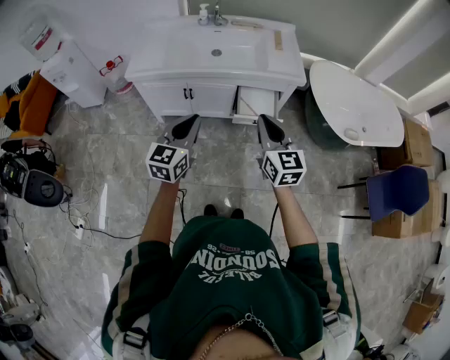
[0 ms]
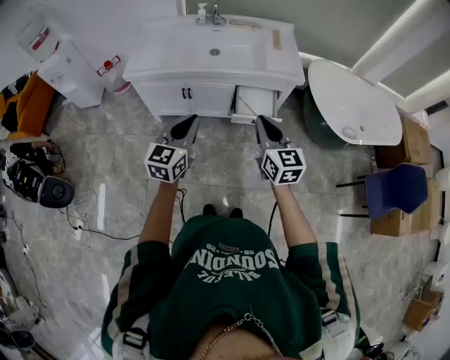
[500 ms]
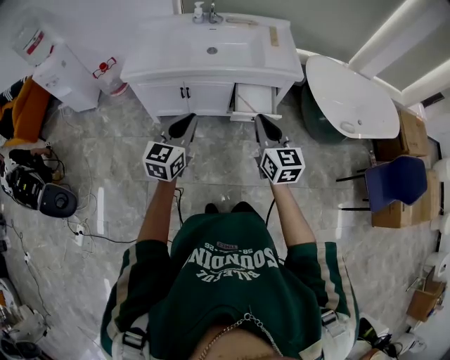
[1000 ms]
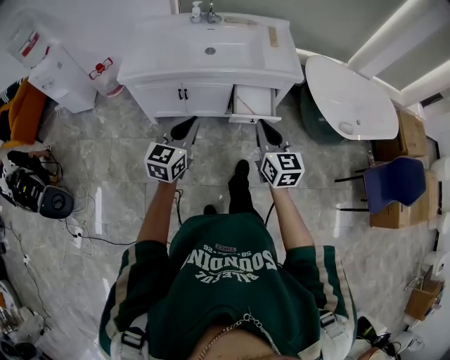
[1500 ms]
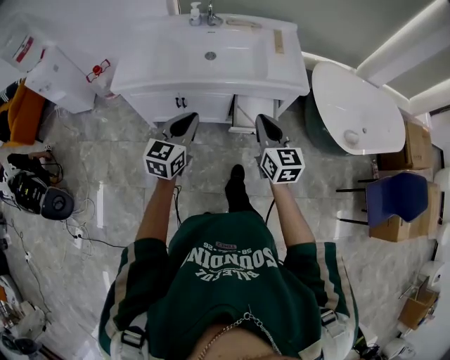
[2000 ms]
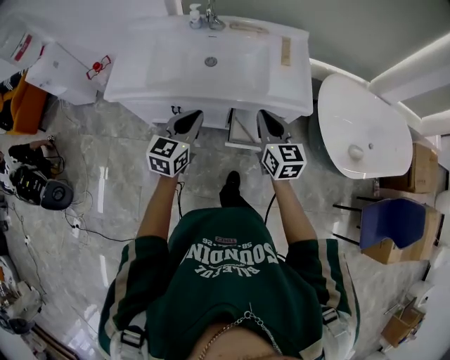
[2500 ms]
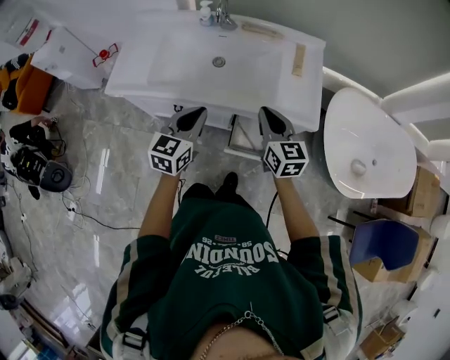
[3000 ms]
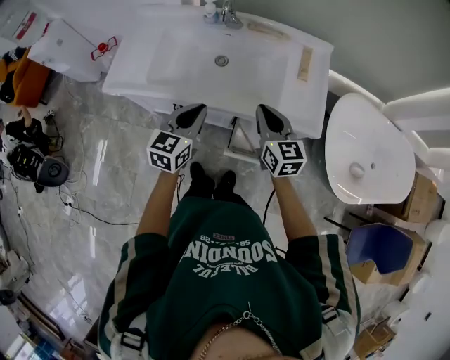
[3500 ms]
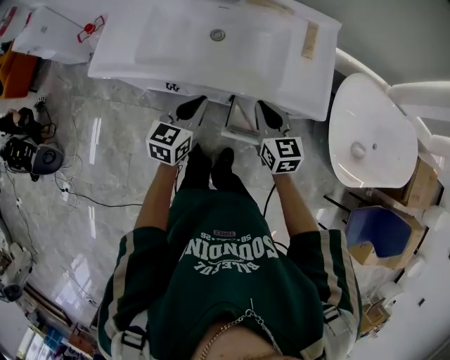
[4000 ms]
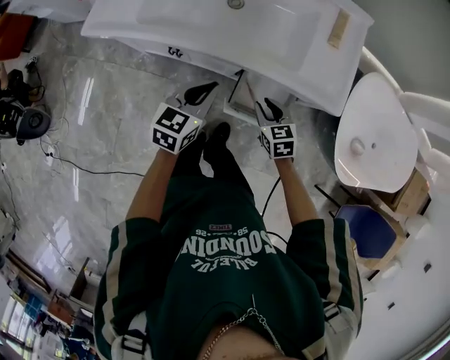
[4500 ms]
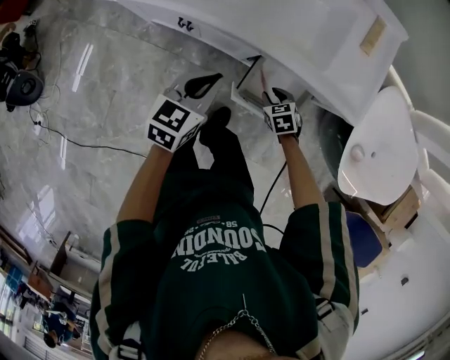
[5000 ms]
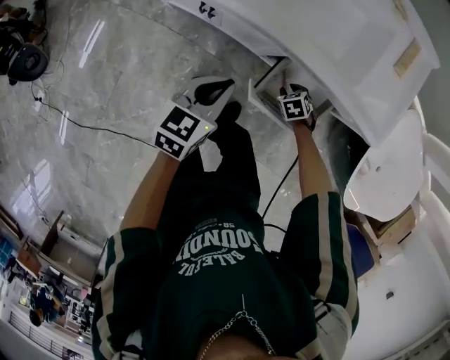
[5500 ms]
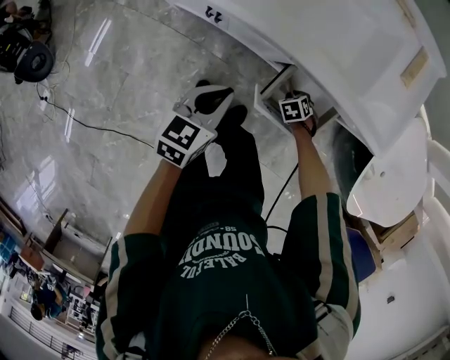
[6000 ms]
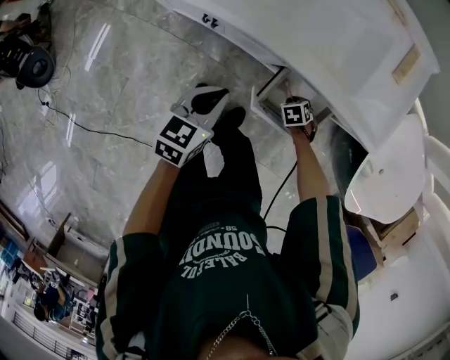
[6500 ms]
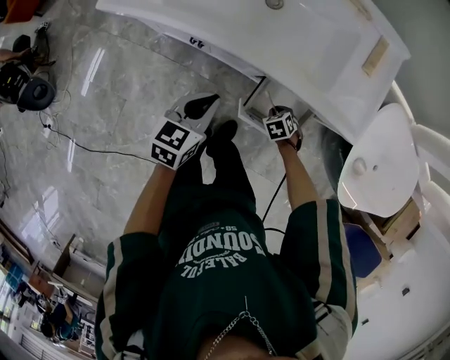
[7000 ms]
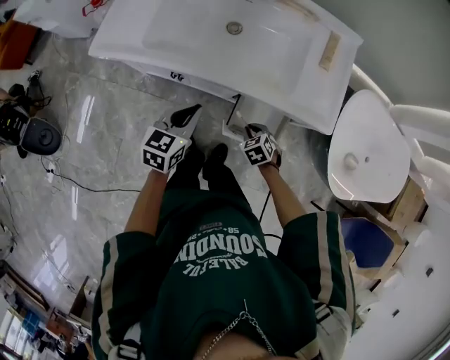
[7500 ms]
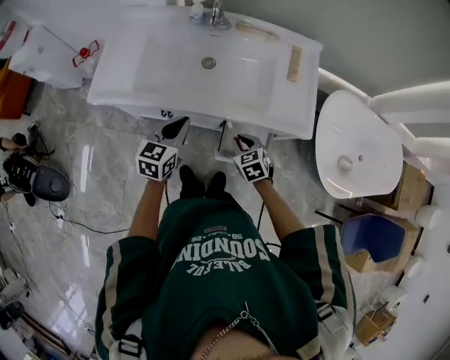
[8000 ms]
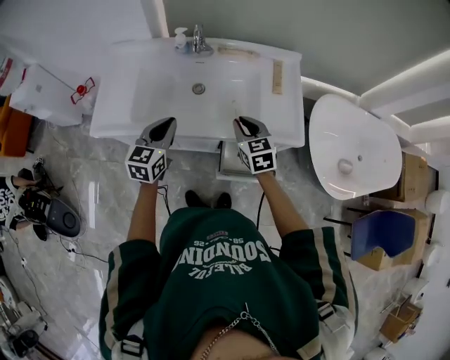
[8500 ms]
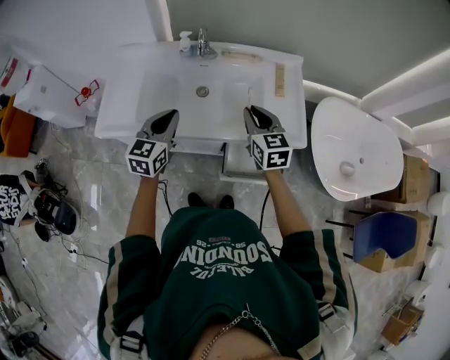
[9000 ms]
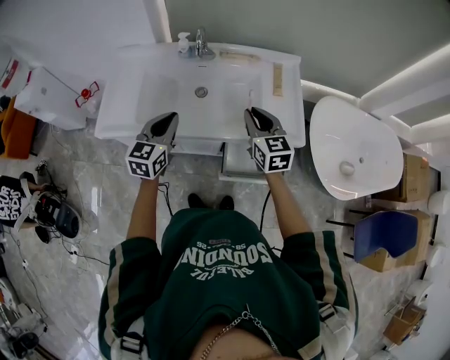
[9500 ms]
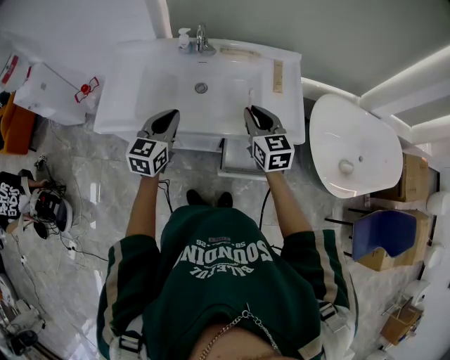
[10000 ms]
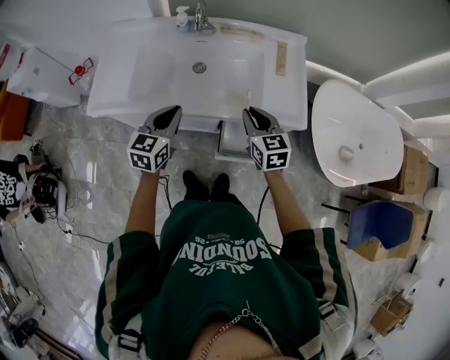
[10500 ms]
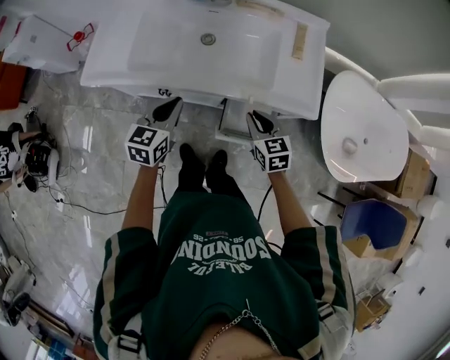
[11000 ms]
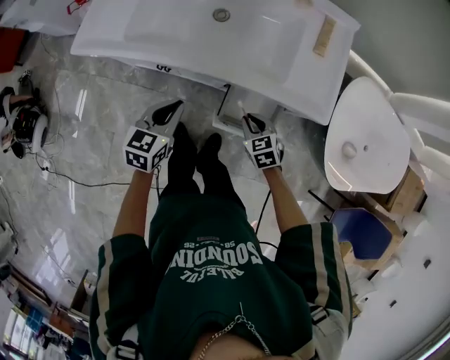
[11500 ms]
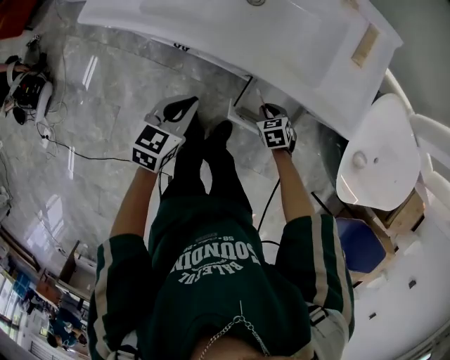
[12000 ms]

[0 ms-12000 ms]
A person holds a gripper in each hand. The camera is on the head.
0 ms to 2000 ms: The left gripper moves forward, roughly 15 cm. Meanwhile the right gripper is displaced forward and downward by roughly 15 cm.
2000 ms to 4000 ms: Both grippers travel together forward and downward, some 25 cm.
4000 ms to 6000 ms: The left gripper is displaced downward by about 20 cm. The right gripper heads downward, covering about 50 cm, and points its fingers some 60 degrees further downward.
6000 ms to 8000 ms: The right gripper shifts some 35 cm upward, and tilts its fingers some 30 degrees upward. The left gripper is displaced upward by about 20 cm.
8000 ms to 10000 ms: The left gripper moves upward, roughly 10 cm. Meanwhile the right gripper shifts approximately 25 cm upward, and points its fingers some 30 degrees further upward.
10000 ms to 12000 ms: The right gripper shifts approximately 40 cm downward, and tips its fingers downward by approximately 50 degrees. Meanwhile the left gripper shifts about 25 cm downward and backward, and swivels about 20 degrees.

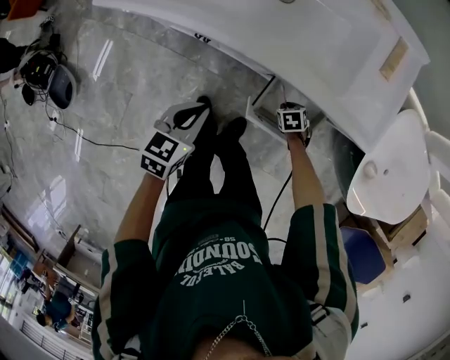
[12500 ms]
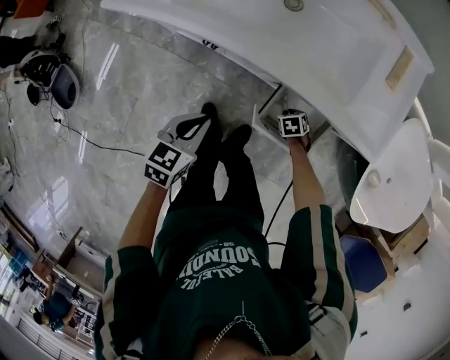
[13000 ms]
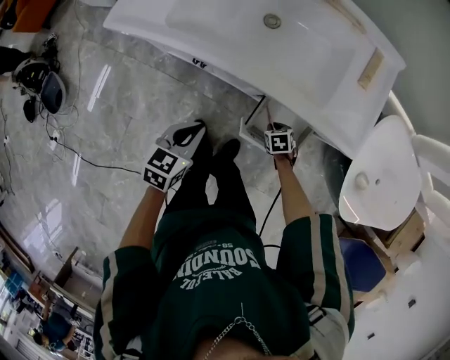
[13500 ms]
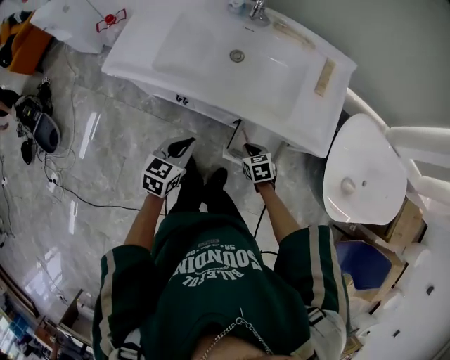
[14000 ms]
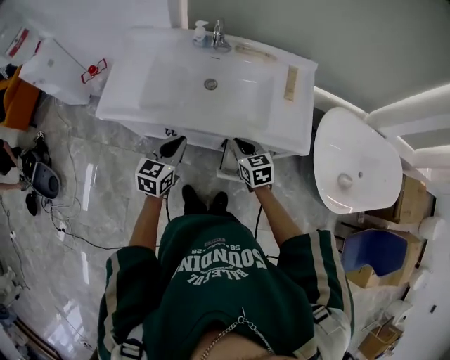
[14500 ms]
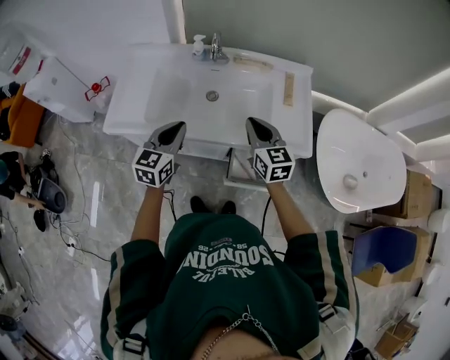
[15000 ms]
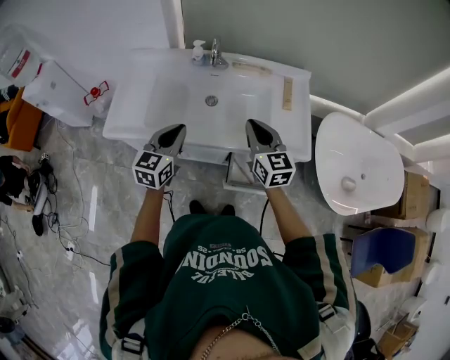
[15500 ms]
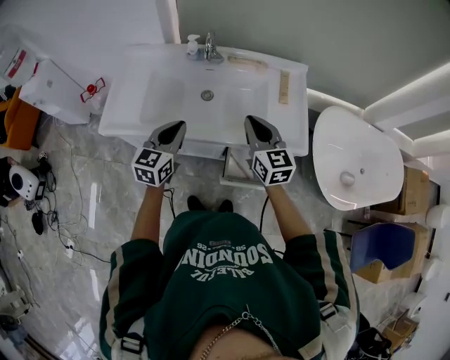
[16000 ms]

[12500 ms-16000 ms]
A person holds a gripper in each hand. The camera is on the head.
12500 ms to 14500 ms: The left gripper is displaced upward by about 15 cm, while the right gripper goes roughly 35 cm upward, and points its fingers some 40 degrees further upward.
14500 ms to 16000 ms: The right gripper shifts roughly 15 cm upward, and rotates roughly 30 degrees. The left gripper travels upward and forward by roughly 10 cm.

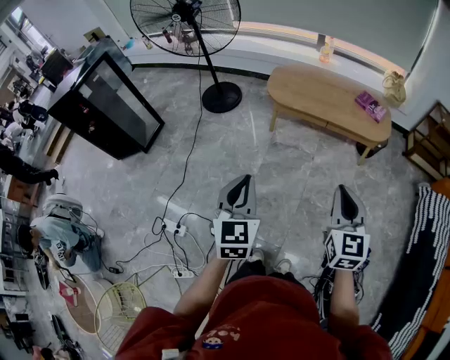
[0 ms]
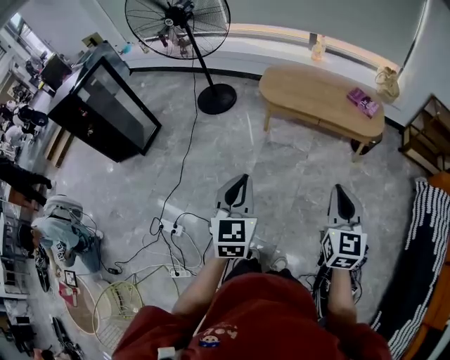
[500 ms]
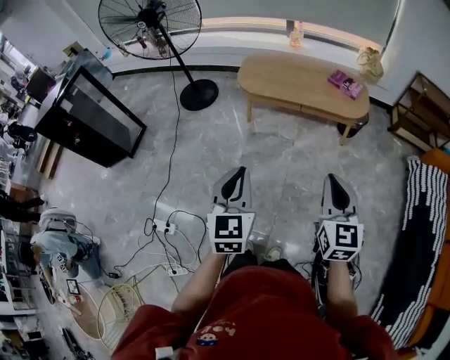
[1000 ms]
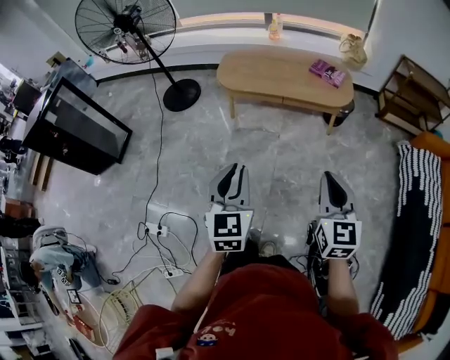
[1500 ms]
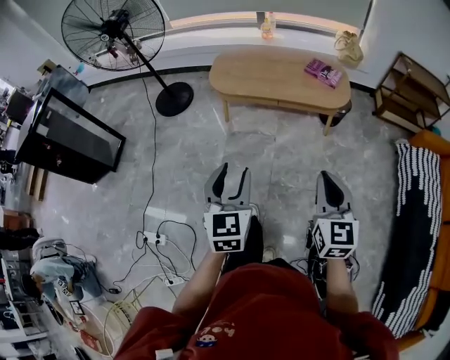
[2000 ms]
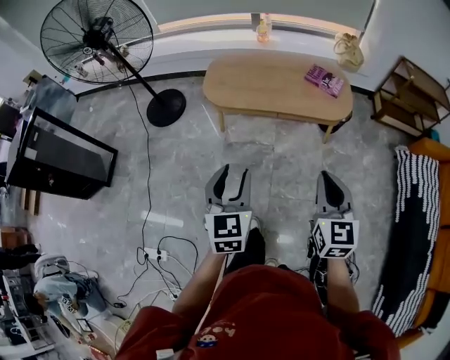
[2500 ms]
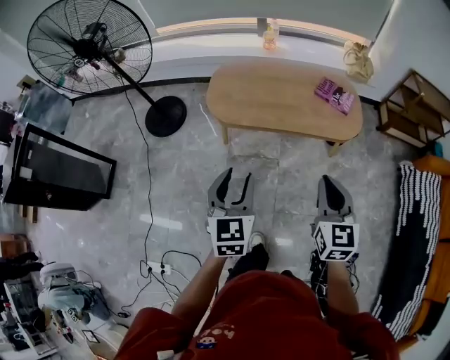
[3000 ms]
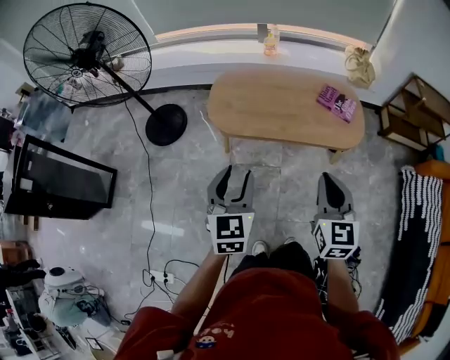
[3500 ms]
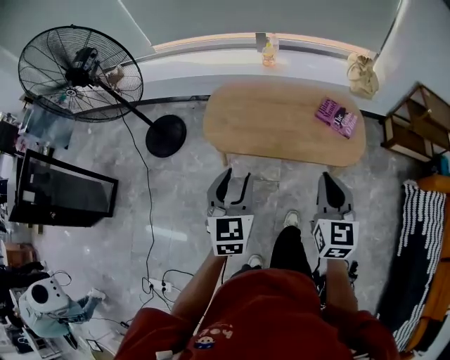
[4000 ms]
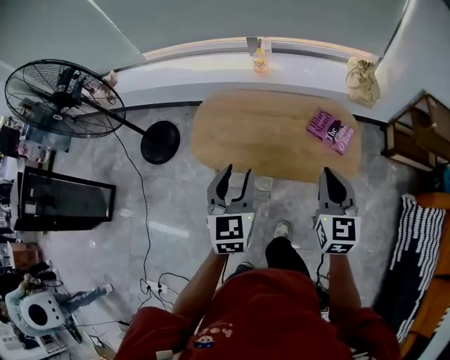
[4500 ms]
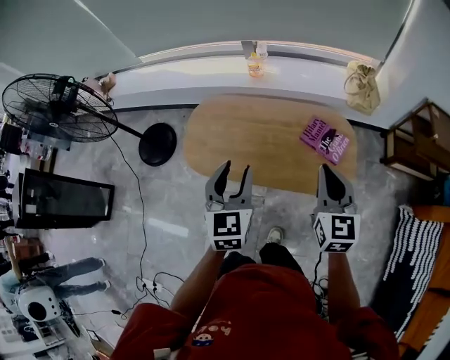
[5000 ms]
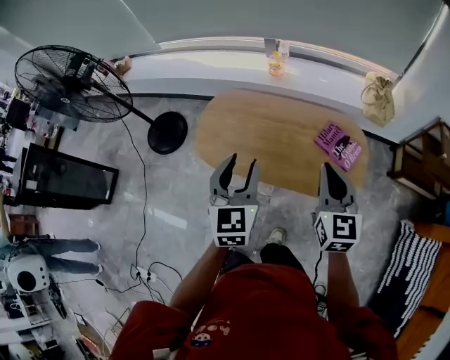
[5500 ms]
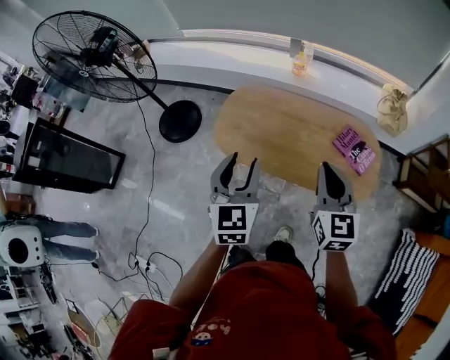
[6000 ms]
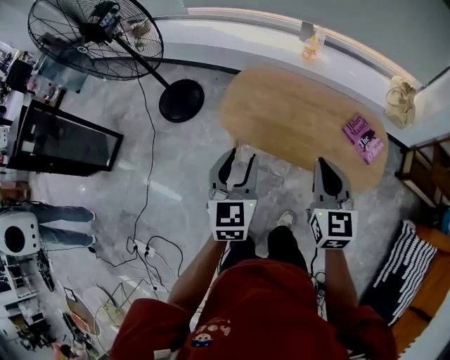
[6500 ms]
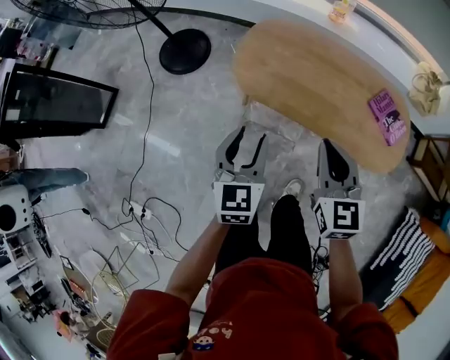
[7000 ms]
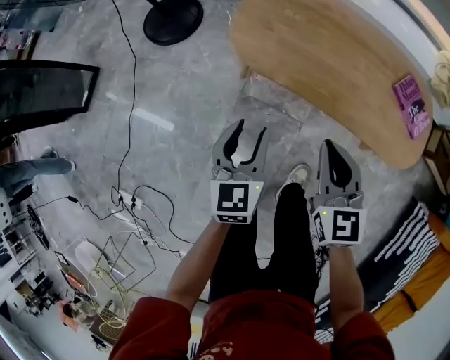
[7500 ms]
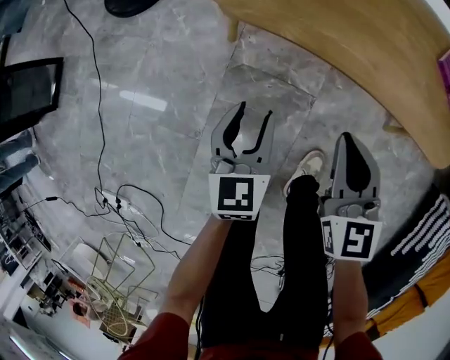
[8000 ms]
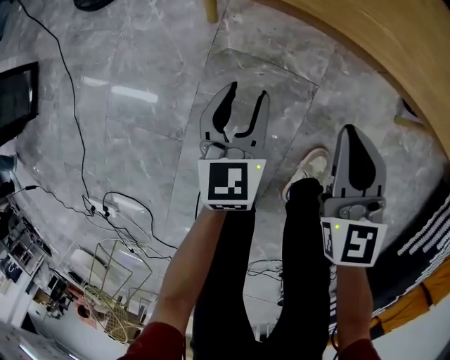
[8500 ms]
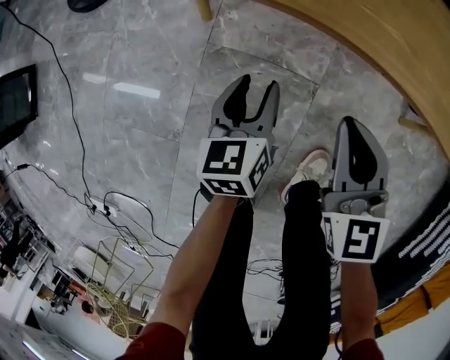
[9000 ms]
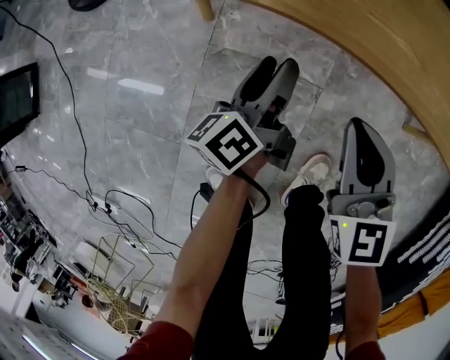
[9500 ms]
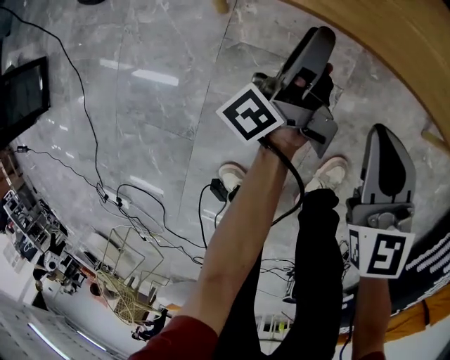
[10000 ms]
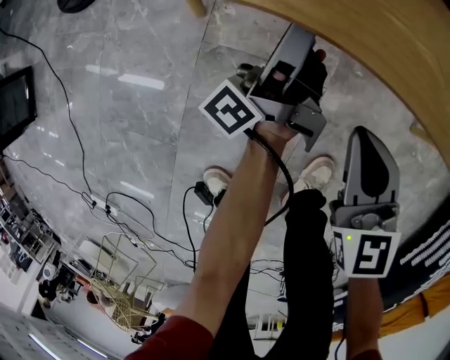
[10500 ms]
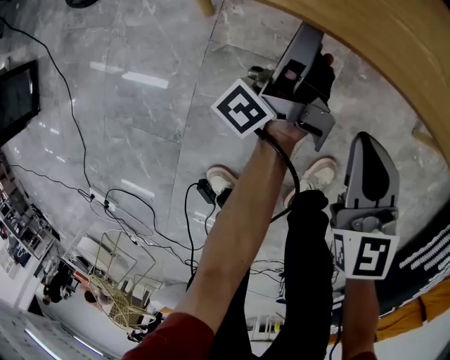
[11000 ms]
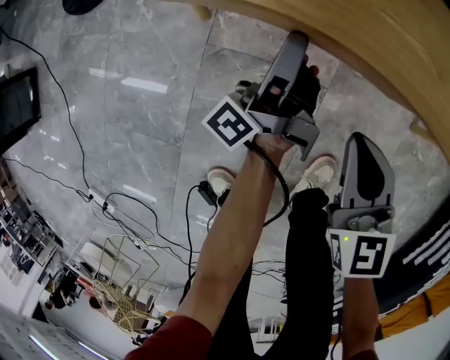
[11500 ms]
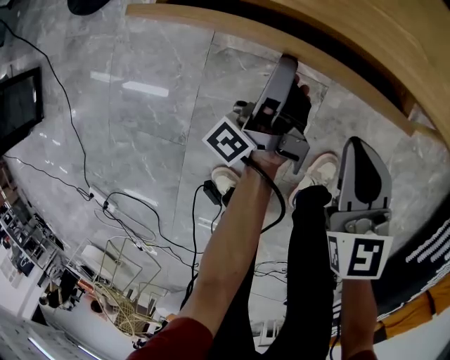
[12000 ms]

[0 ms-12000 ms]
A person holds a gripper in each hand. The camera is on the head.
0 ms to 2000 ms: Both grippers move to the right, some 15 cm. The left gripper opens up.
2000 ms to 4000 ms: The two grippers travel together, forward, some 40 cm.
4000 ms to 6000 ms: Both grippers move forward, roughly 15 cm.
6000 ms to 8000 ms: The grippers both shift downward by some 50 cm.
8000 ms to 10000 ms: The left gripper goes approximately 25 cm downward, forward and to the right, and rolls counterclockwise, seen from behind, by approximately 70 degrees, while the right gripper goes roughly 20 cm downward.
10000 ms to 12000 ms: The left gripper moves backward, roughly 5 cm.
